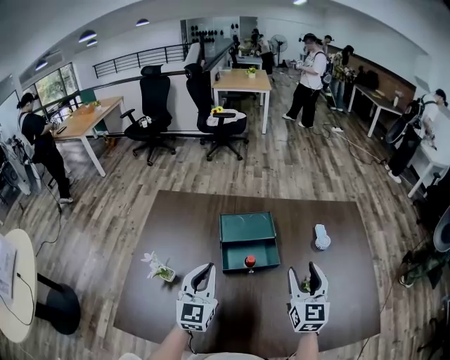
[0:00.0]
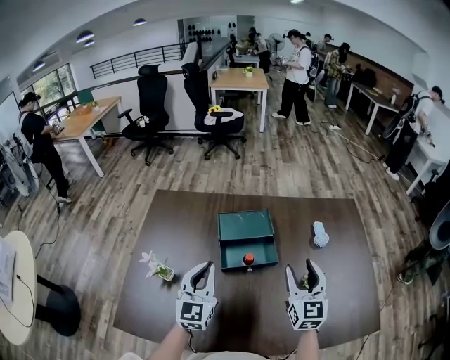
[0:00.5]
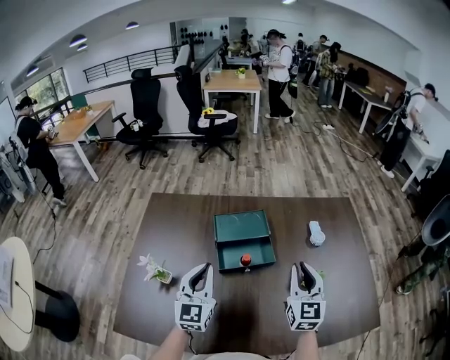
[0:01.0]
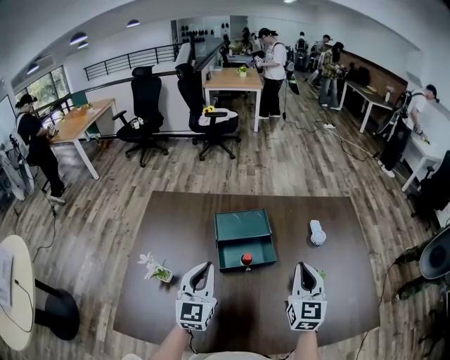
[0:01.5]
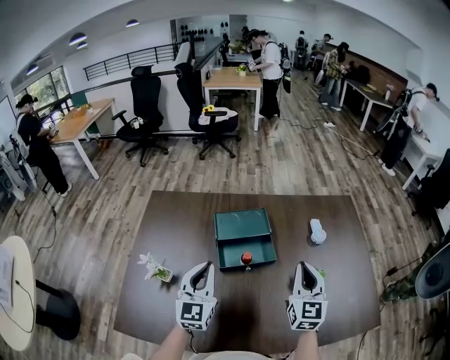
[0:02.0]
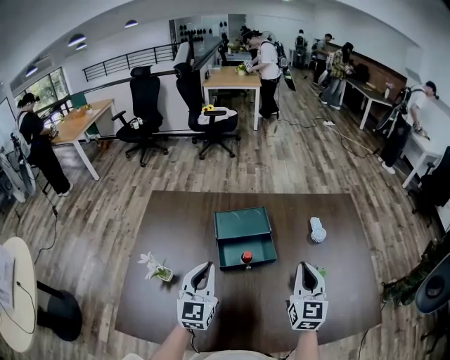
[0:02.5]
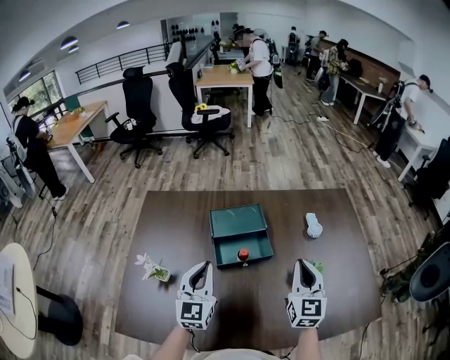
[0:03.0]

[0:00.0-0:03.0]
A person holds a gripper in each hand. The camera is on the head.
0:00.0 to 0:01.5: The right gripper closes up.
0:01.5 to 0:03.0: The grippers move only a little.

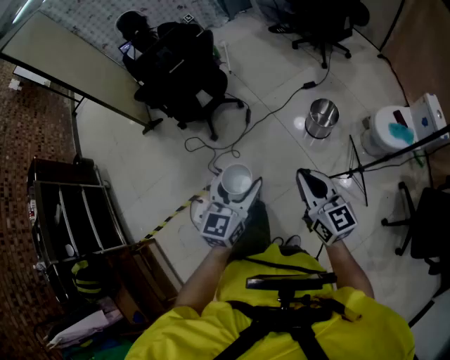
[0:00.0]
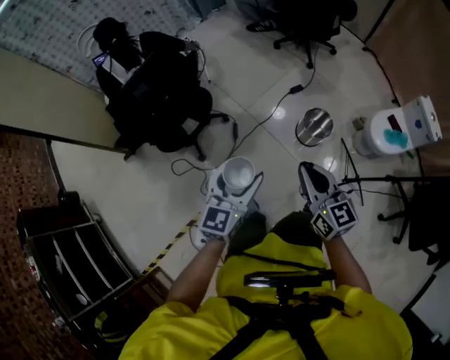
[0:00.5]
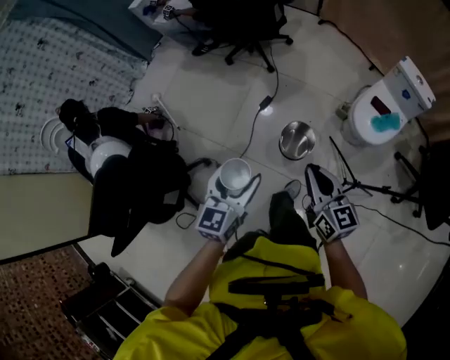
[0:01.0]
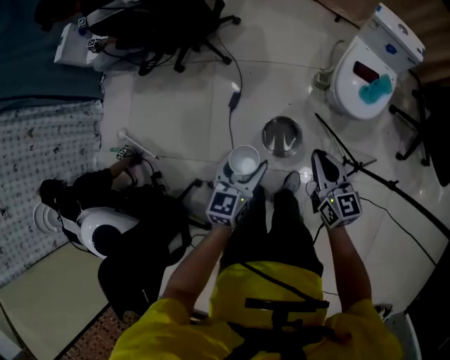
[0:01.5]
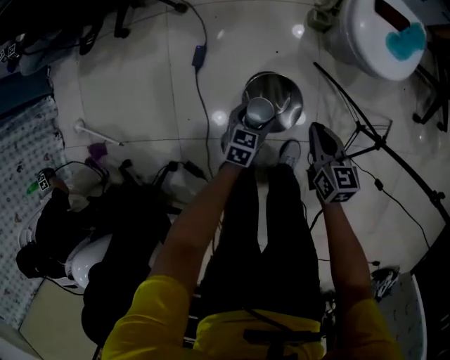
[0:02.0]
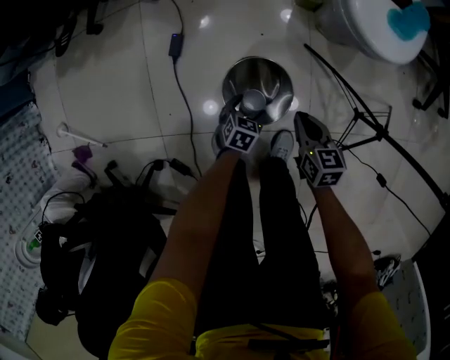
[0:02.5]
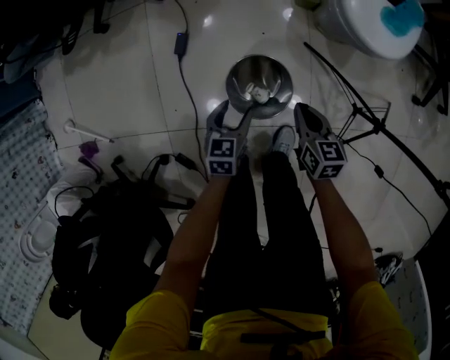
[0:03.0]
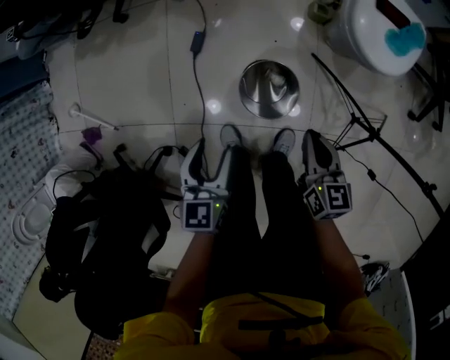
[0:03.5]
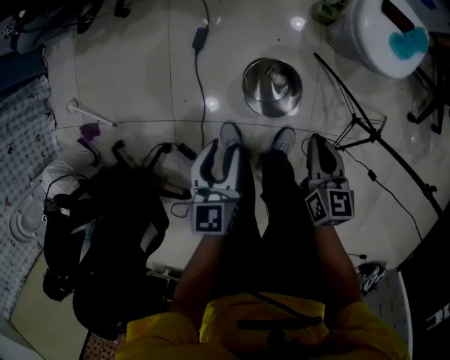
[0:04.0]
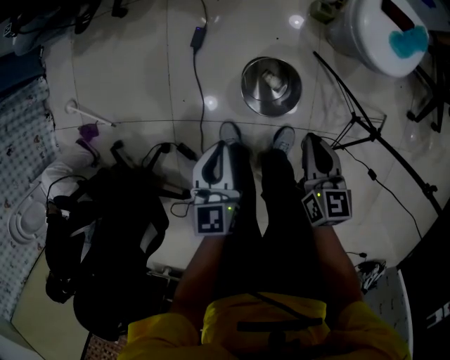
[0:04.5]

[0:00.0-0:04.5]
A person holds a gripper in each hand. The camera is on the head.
0:00.0 to 0:02.0: The two grippers travel together, some 70 cm. The left gripper points its fingers some 40 degrees further downward. Meanwhile the right gripper rotates roughly 70 degrees.
0:02.0 to 0:04.5: The right gripper heads upward, covering some 10 cm; the left gripper is displaced upward and to the left by roughly 25 cm, turns by about 40 degrees, and closes its fingers.

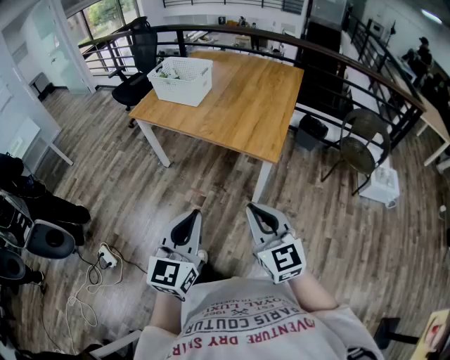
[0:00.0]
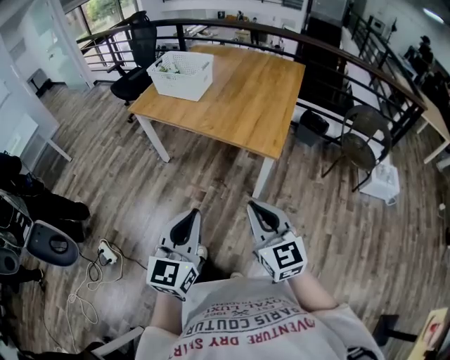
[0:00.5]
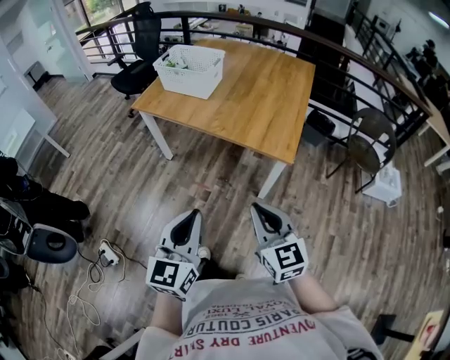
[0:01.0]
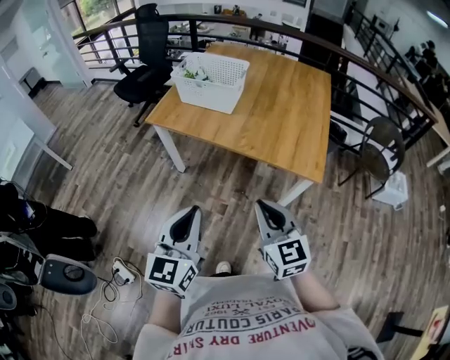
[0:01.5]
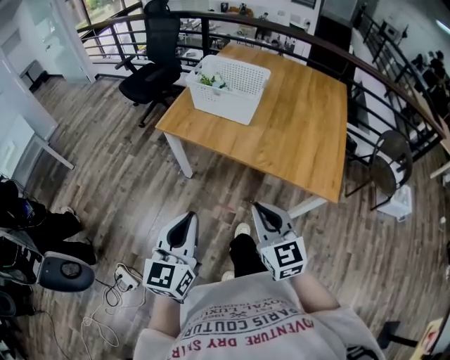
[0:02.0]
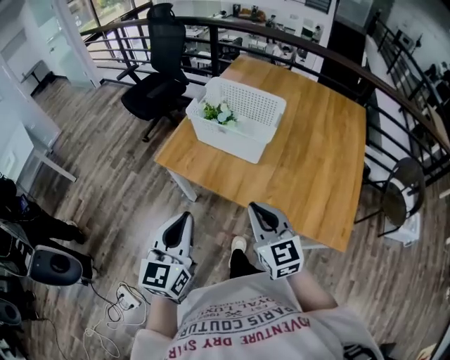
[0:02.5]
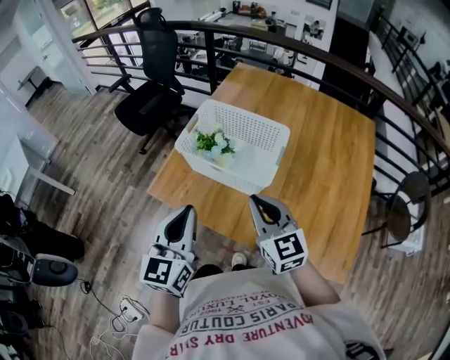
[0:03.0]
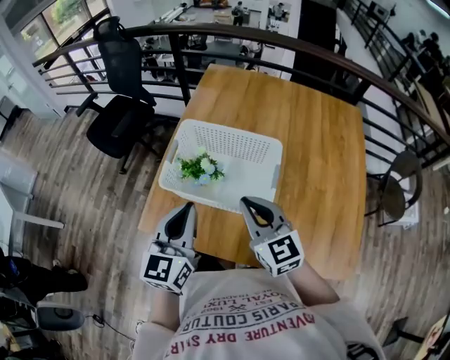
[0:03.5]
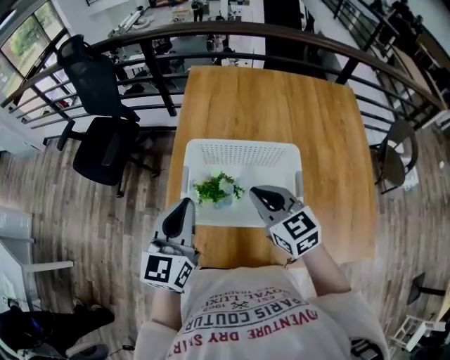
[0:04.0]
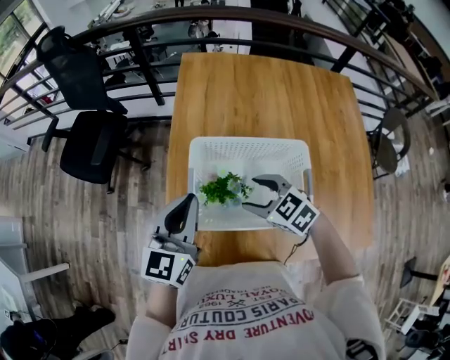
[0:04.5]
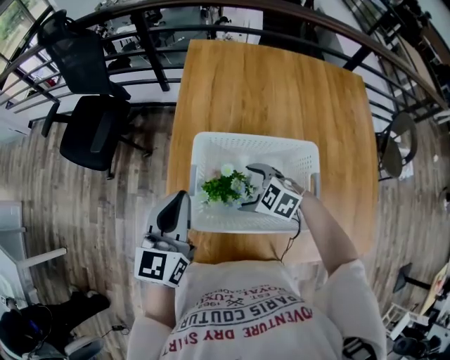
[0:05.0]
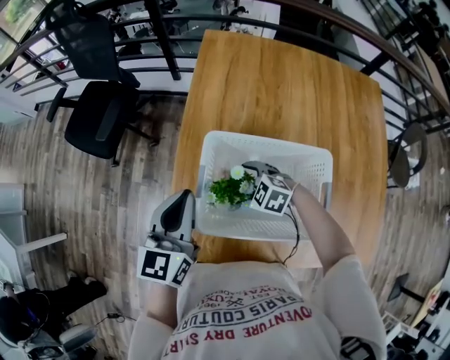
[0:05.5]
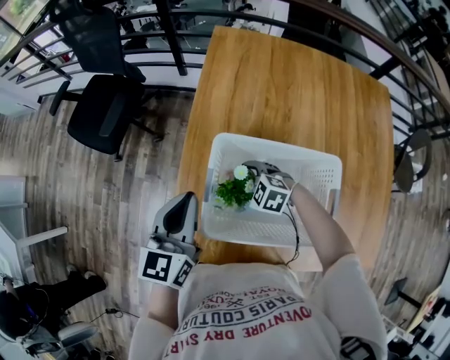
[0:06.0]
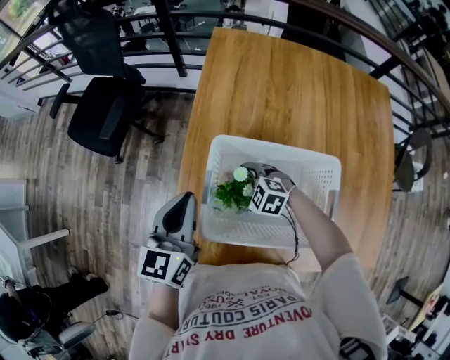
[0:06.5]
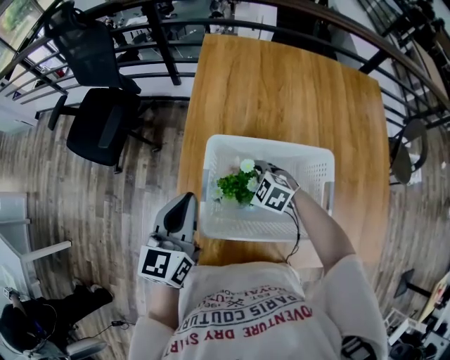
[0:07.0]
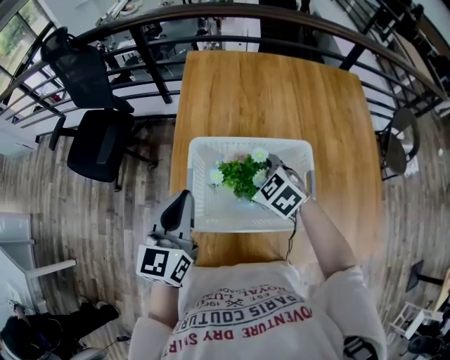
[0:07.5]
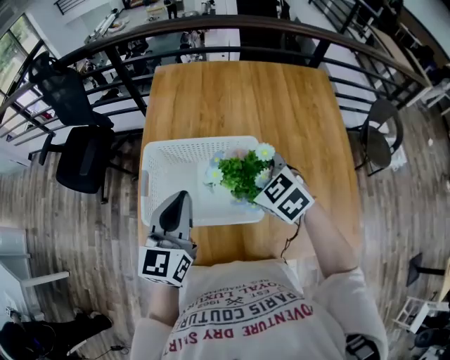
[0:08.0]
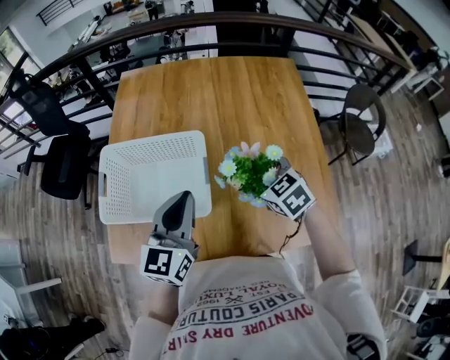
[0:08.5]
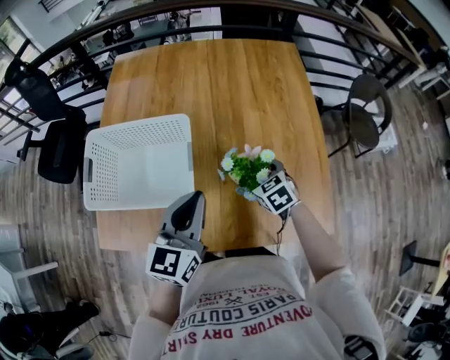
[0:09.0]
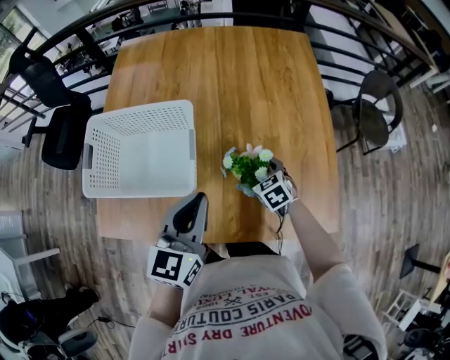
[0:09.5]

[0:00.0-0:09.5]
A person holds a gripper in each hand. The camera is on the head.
0:00.0 to 0:02.0: The left gripper goes some 40 cm to the left and forward. The right gripper goes roughly 40 cm forward and to the left.
0:02.0 to 0:04.0: The pair of grippers is taken forward, roughly 60 cm.
0:04.0 to 0:05.5: The left gripper goes approximately 10 cm forward and downward; the right gripper shifts roughly 20 cm downward, points its fingers roughly 30 degrees further downward, and opens up.
0:05.5 to 0:07.5: The right gripper travels upward by about 10 cm, and turns by about 30 degrees.
0:07.5 to 0:09.5: The right gripper heads to the right, downward and backward, covering roughly 40 cm, and turns by roughly 20 degrees. Meanwhile the left gripper moves to the right and backward, about 35 cm.

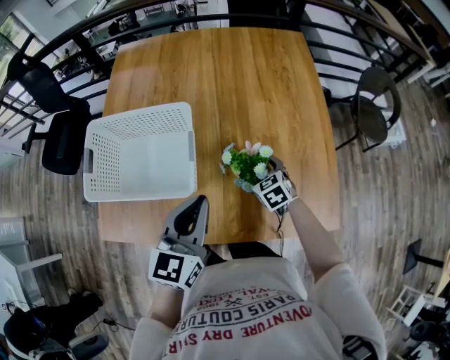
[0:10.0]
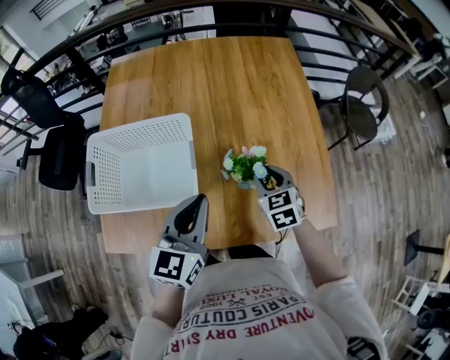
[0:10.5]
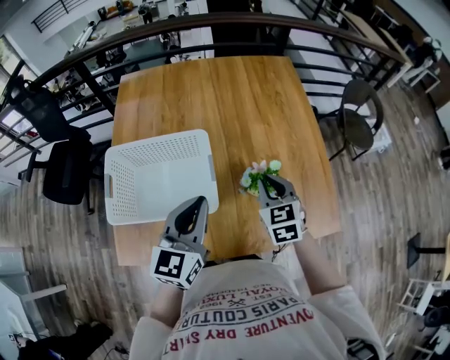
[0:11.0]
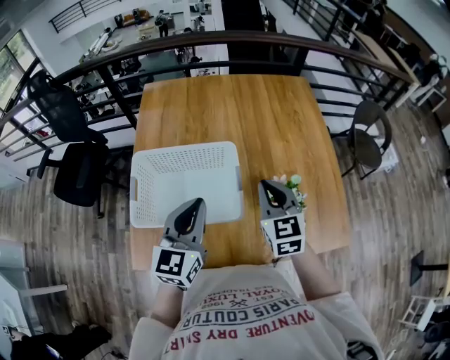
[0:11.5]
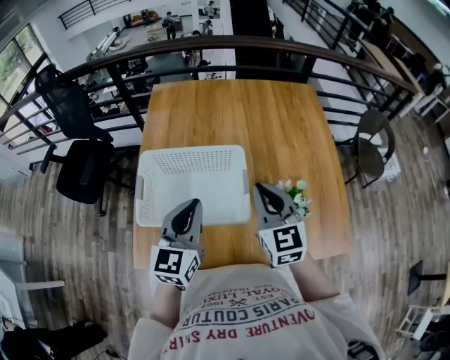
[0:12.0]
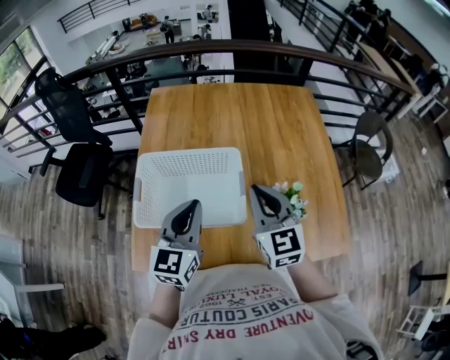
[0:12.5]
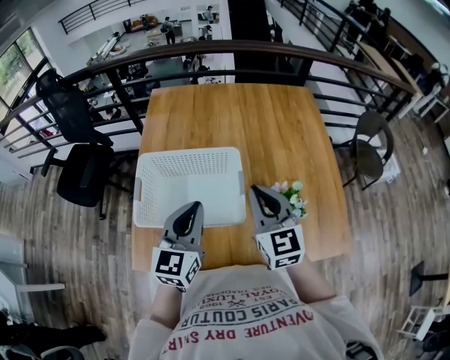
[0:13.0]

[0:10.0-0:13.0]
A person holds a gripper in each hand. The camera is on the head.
0:10.0 to 0:11.5: The right gripper goes some 30 cm upward and to the left, points its fingers roughly 30 degrees further upward, and closes. The left gripper shifts some 15 cm to the left and upward.
0:11.5 to 0:13.0: The right gripper ends up some 5 cm from where it was.

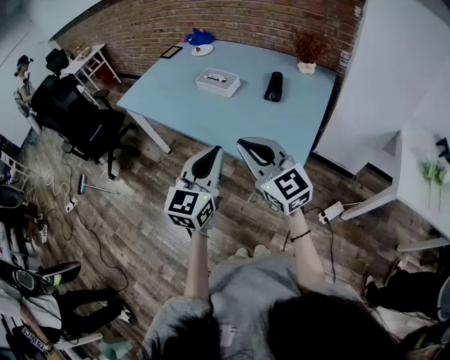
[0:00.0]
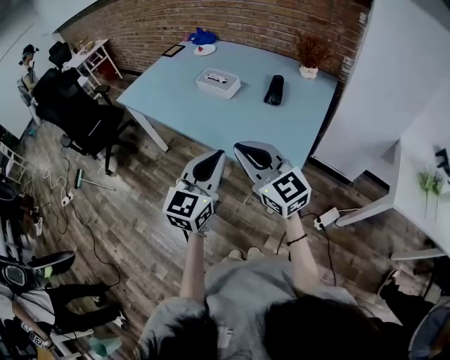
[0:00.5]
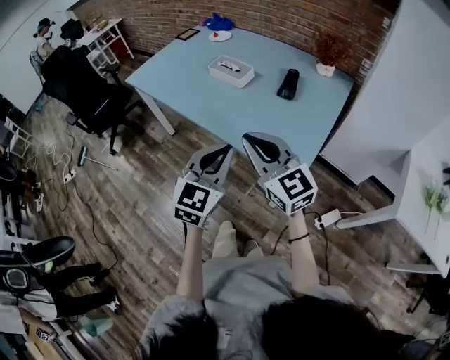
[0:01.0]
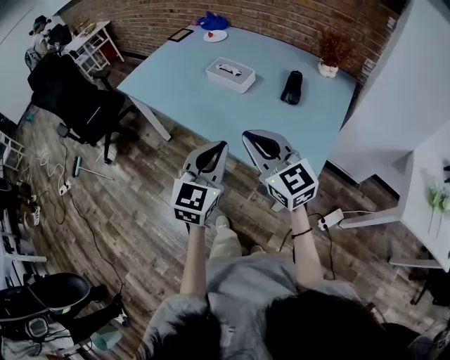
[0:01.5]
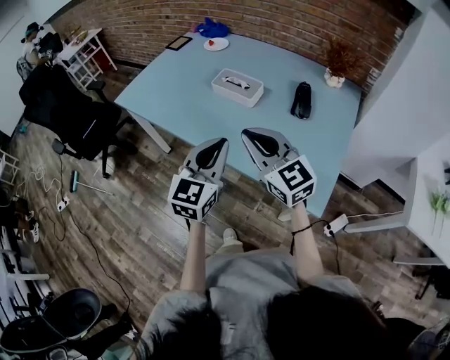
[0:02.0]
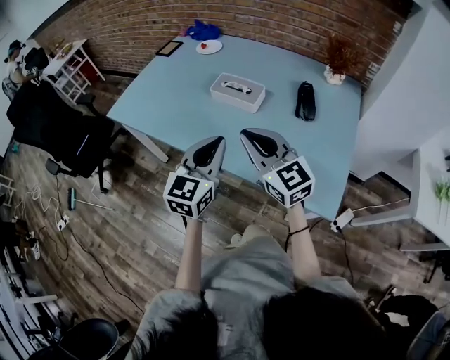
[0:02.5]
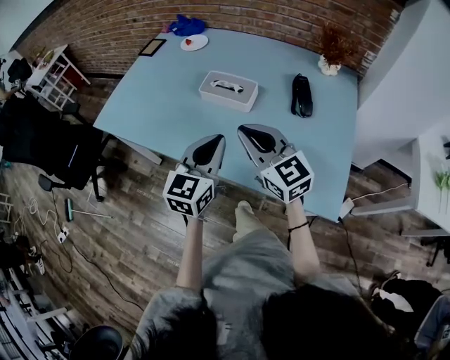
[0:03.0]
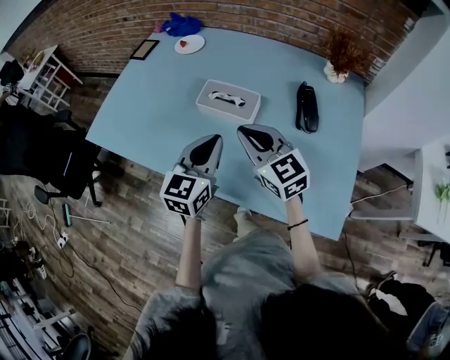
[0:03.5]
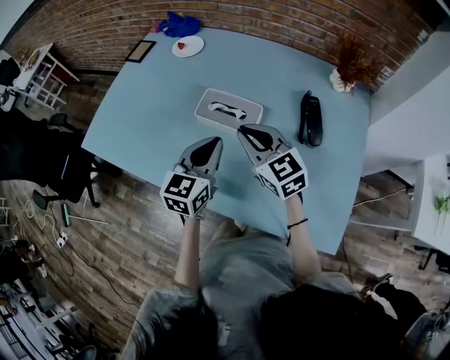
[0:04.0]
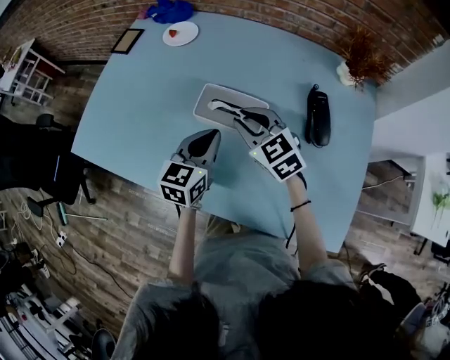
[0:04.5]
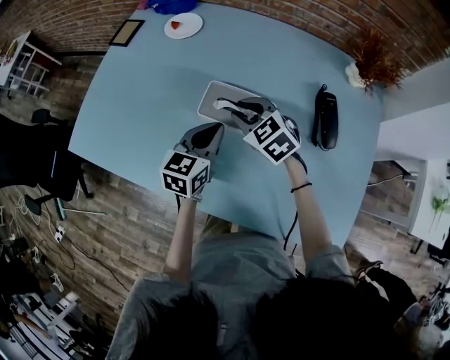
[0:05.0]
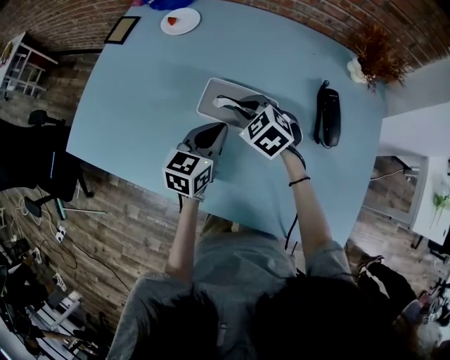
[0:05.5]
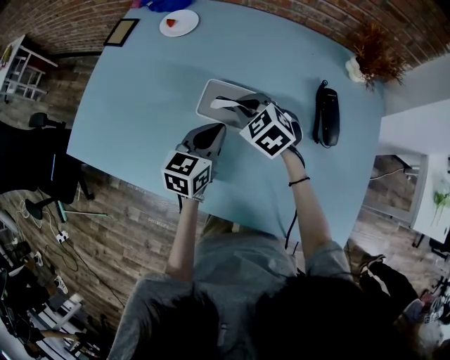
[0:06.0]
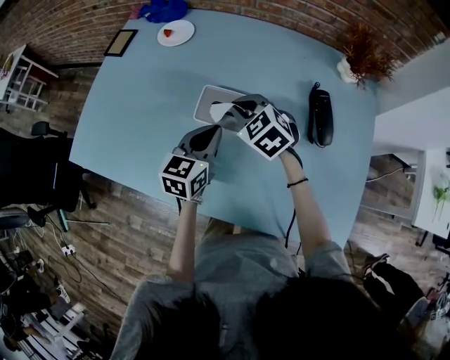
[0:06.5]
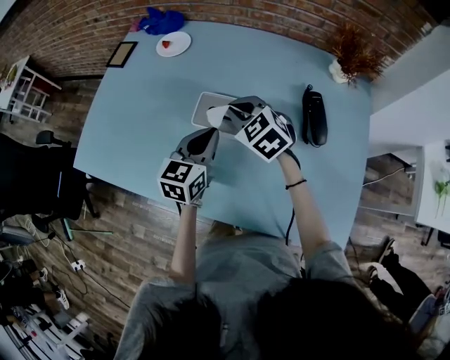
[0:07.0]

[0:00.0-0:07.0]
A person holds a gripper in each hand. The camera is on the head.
0:00.0 to 0:02.0: The left gripper goes roughly 20 cm forward. The right gripper is displaced forward and to the left by roughly 20 cm.
0:02.0 to 0:03.5: Both grippers move forward, approximately 20 cm.
0:03.5 to 0:05.0: The two grippers go some 20 cm forward and downward. The right gripper changes its angle by roughly 30 degrees, and opens its fingers.
0:05.0 to 0:07.0: The right gripper goes approximately 5 cm upward, and closes its fingers.
